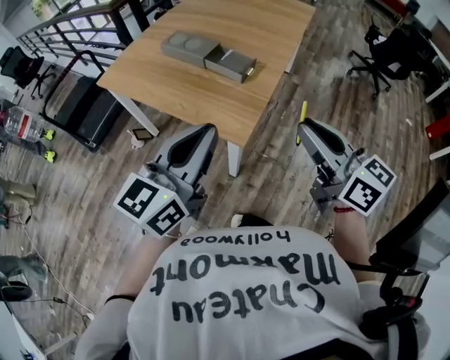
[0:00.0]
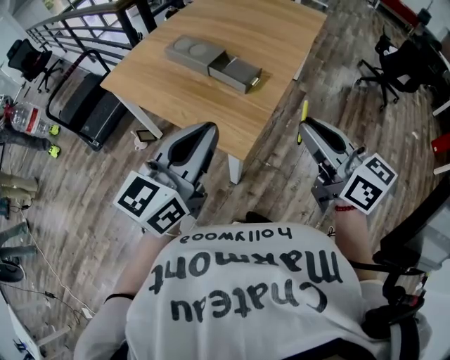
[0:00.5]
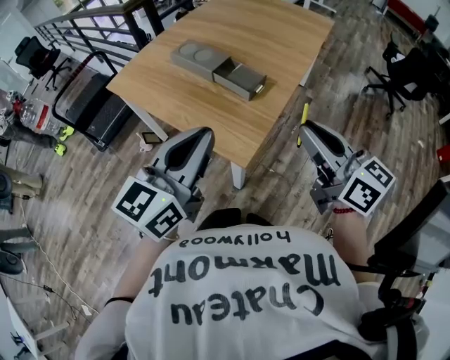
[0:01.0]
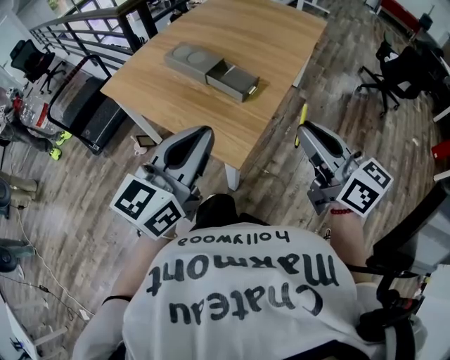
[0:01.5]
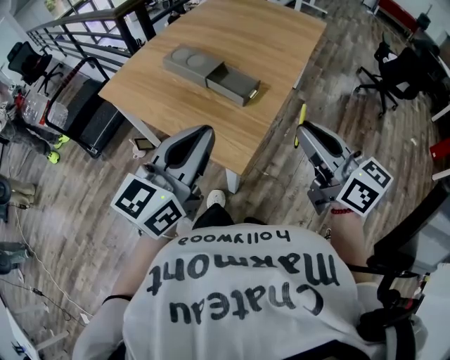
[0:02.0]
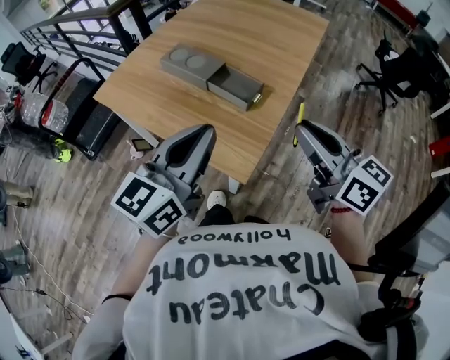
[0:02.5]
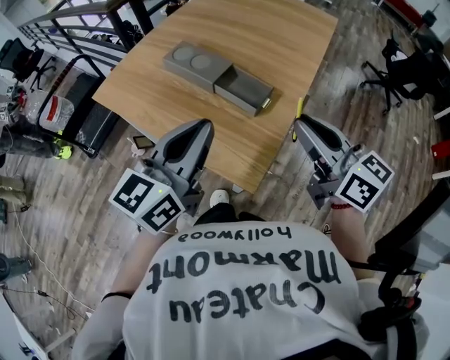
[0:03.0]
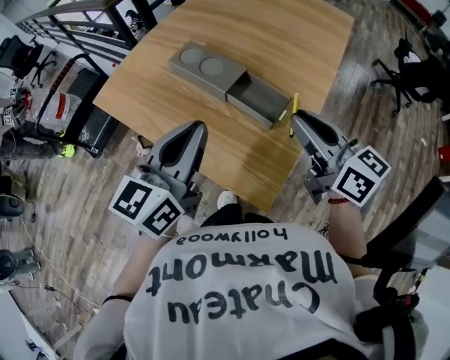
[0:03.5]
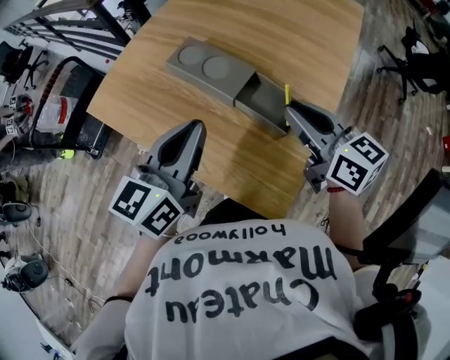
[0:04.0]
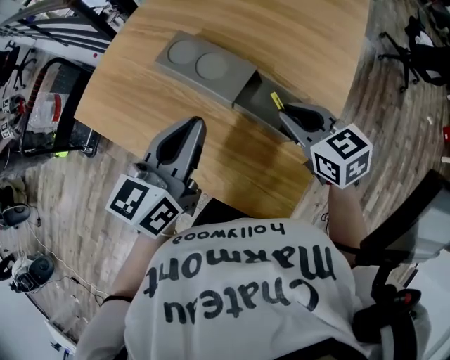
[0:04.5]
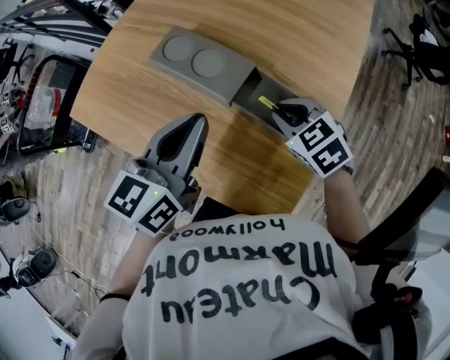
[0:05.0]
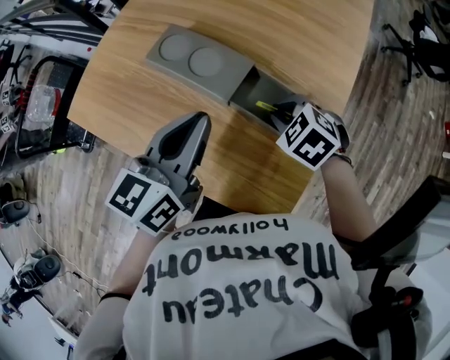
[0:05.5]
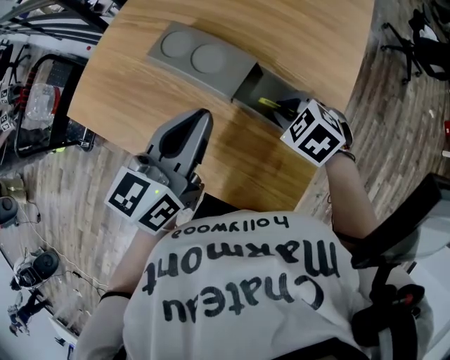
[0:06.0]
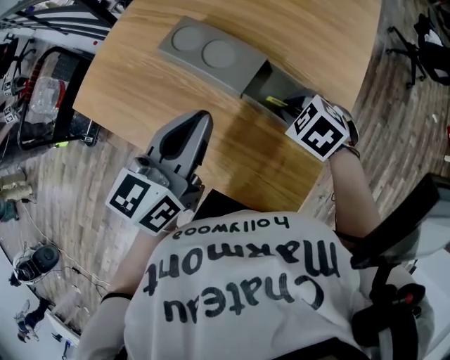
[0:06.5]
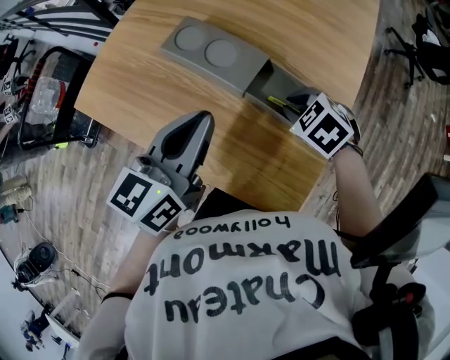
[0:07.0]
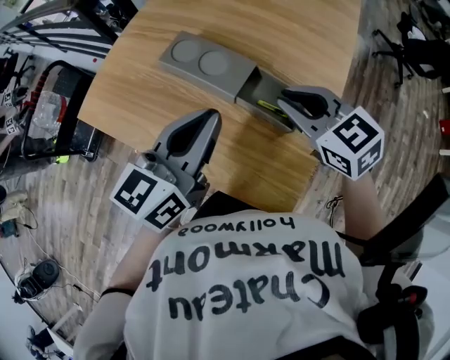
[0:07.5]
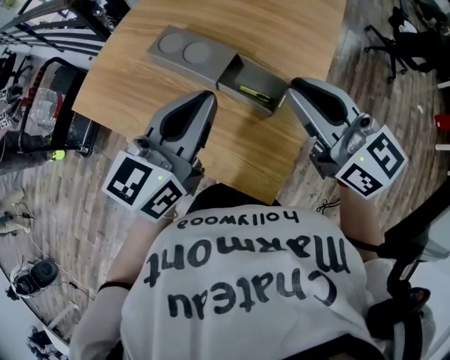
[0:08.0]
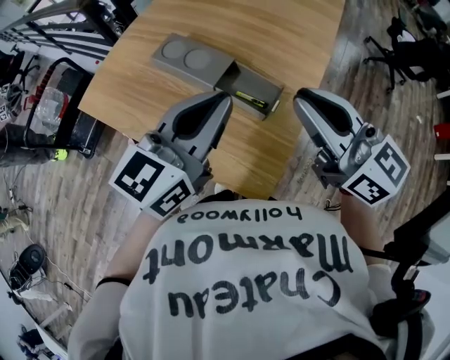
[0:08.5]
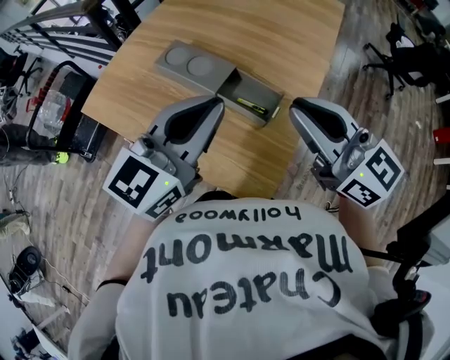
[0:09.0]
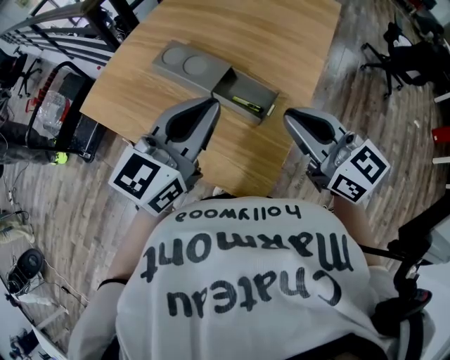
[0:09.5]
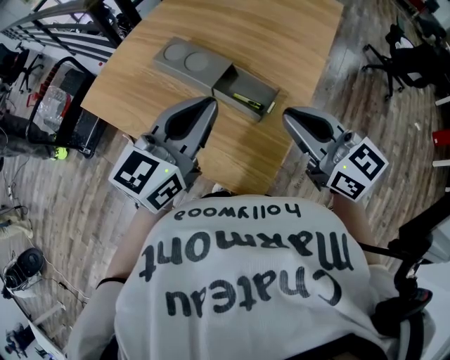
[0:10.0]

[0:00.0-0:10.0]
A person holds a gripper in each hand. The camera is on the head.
0:00.0 to 0:02.0: The grippers both shift forward by some 10 cm.
0:02.0 to 0:04.0: Both grippers travel together forward and to the left, roughly 30 cm.
0:04.0 to 0:06.0: The left gripper shifts by about 5 cm. Meanwhile the right gripper heads downward, covering about 20 cm, and points its fingers approximately 50 degrees further downward.
0:06.0 to 0:08.0: The right gripper moves upward, approximately 25 cm, and tips its fingers upward by approximately 60 degrees. Meanwhile the left gripper goes roughly 10 cm upward, backward and to the right.
0:08.0 to 0:10.0: The right gripper changes place by some 5 cm.

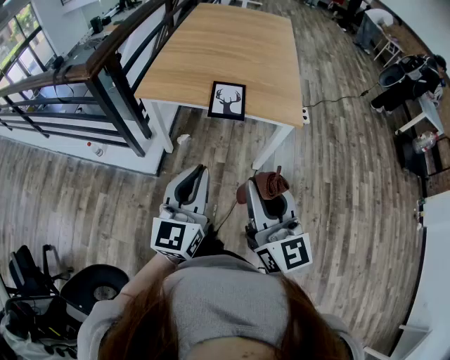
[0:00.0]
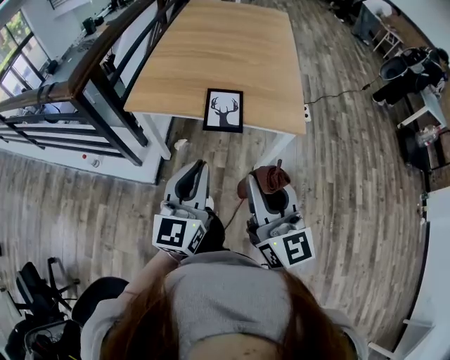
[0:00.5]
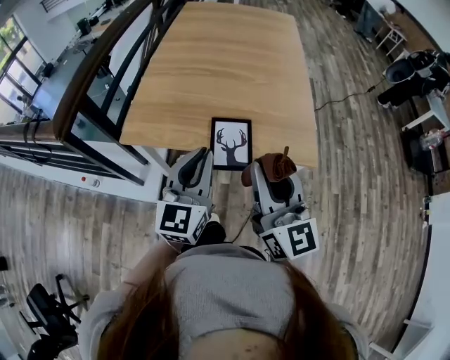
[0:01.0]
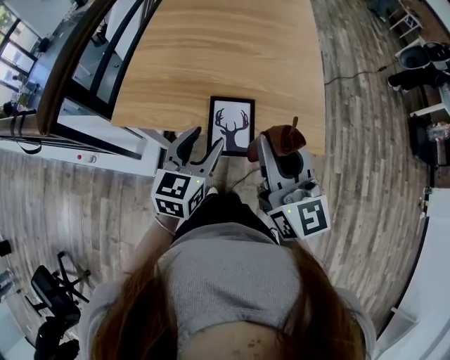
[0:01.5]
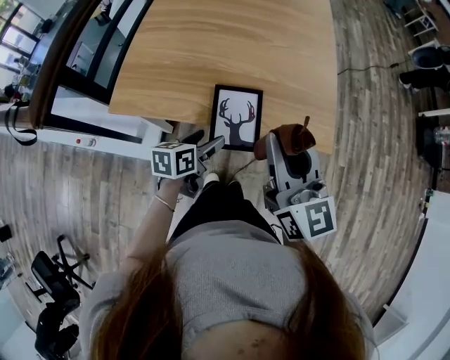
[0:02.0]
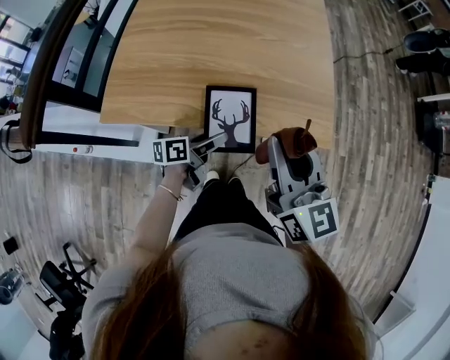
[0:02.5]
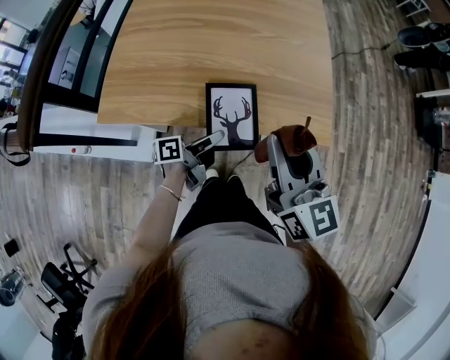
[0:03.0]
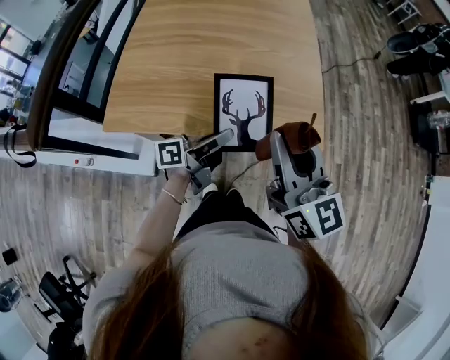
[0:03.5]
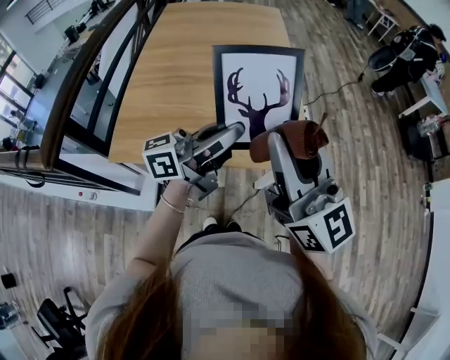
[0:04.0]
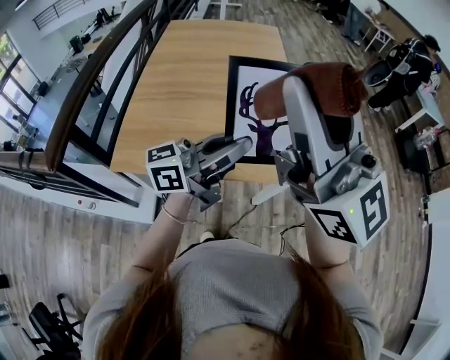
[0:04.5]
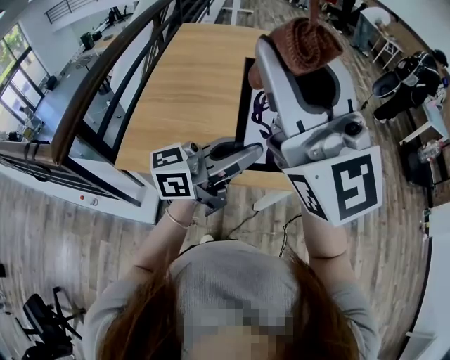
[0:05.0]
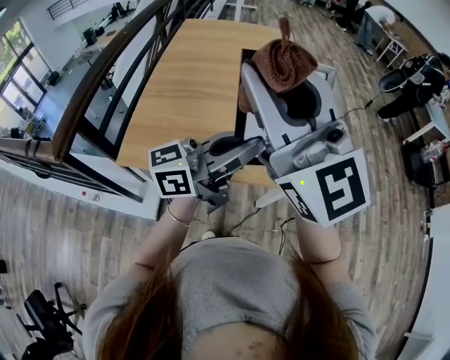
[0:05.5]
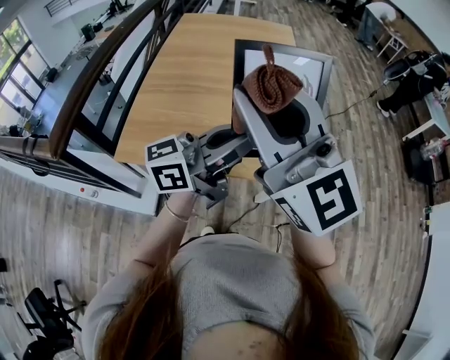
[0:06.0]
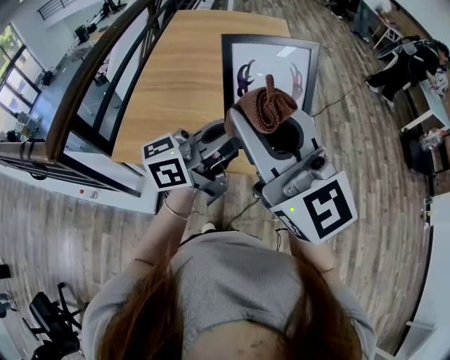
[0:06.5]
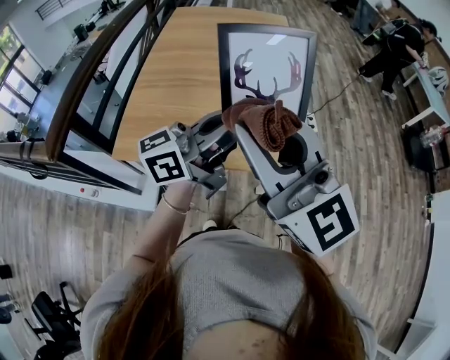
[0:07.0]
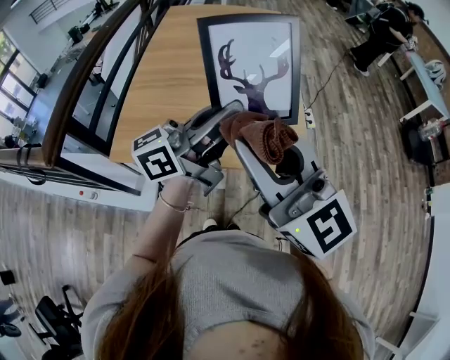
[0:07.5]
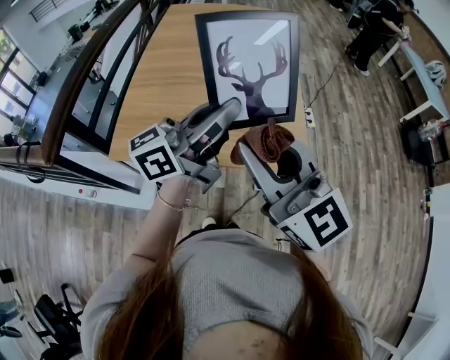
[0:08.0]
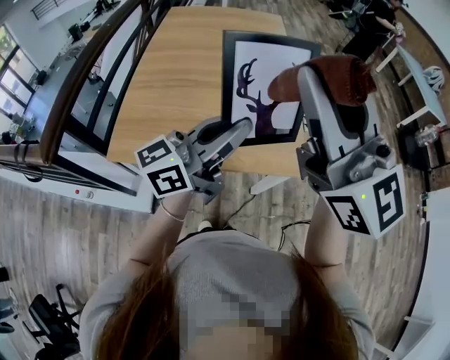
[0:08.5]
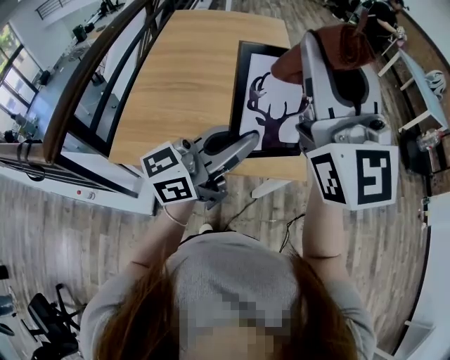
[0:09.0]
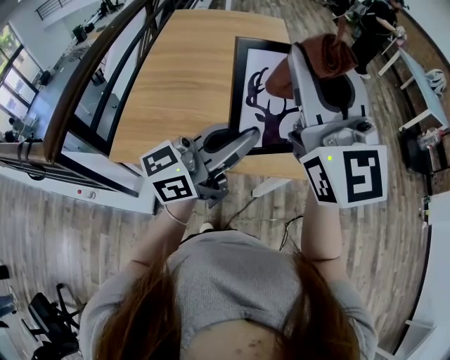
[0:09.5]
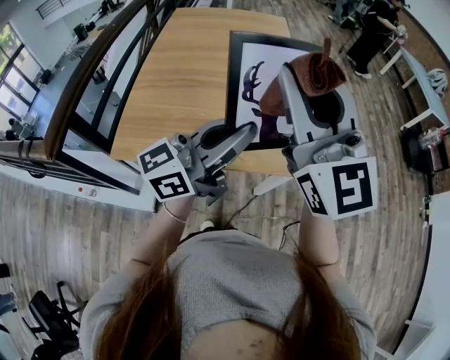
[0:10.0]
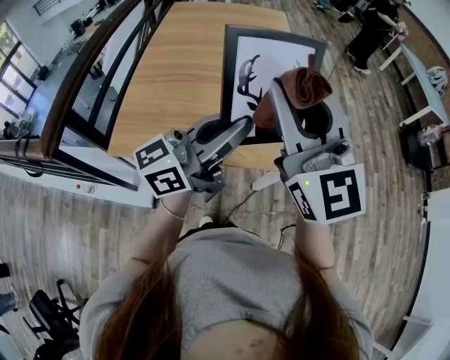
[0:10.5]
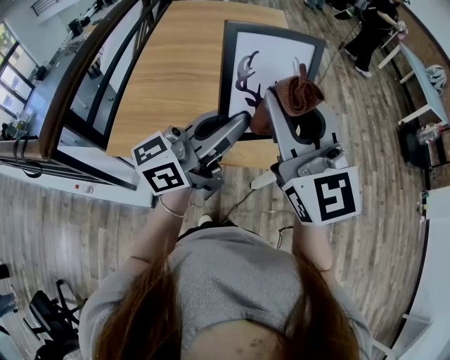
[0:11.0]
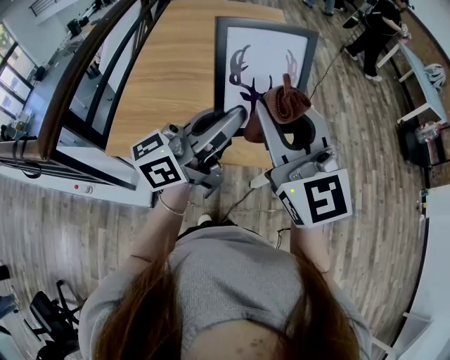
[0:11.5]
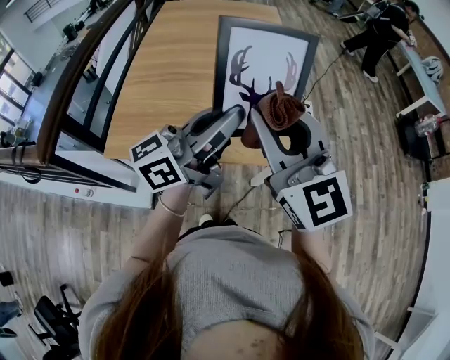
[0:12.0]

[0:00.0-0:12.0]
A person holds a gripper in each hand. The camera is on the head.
0:00.0 to 0:02.0: The right gripper travels forward by some 40 cm, while the left gripper shifts about 40 cm forward and downward, points its fingers approximately 30 degrees further downward, and opens its fingers.
0:02.0 to 0:04.0: The left gripper heads upward, covering roughly 30 cm, tips its fingers upward by approximately 60 degrees, and closes. The right gripper is displaced upward by about 15 cm, and swivels some 20 degrees.
0:04.0 to 0:06.0: The left gripper moves upward, about 5 cm. The right gripper travels to the left and upward by approximately 10 cm, and swivels some 20 degrees.
0:06.0 to 0:08.0: The right gripper travels downward by about 10 cm.
0:08.0 to 0:10.0: The right gripper moves upward and forward, roughly 15 cm, and turns by some 20 degrees.
0:10.0 to 0:12.0: The right gripper is displaced downward by approximately 10 cm.

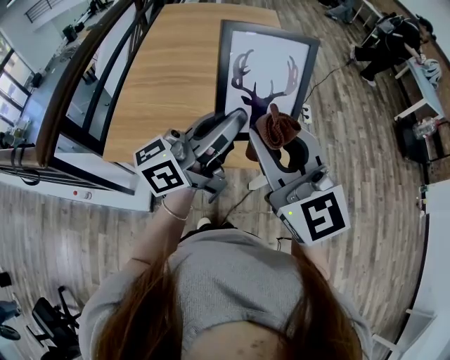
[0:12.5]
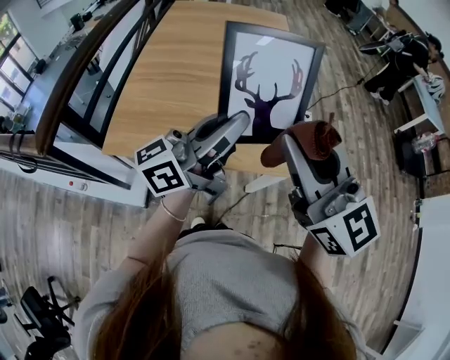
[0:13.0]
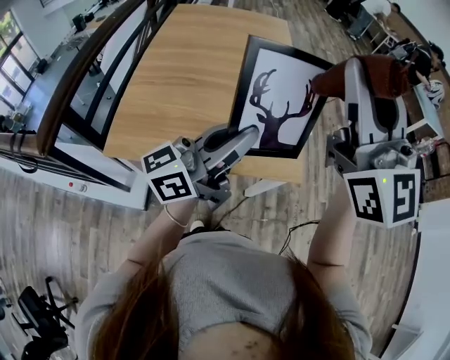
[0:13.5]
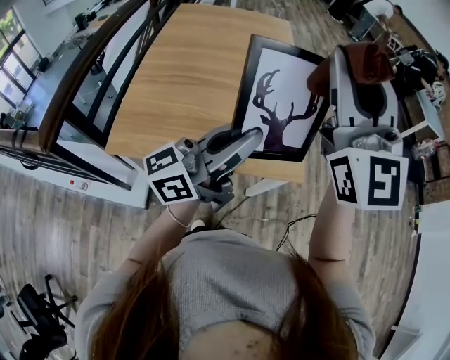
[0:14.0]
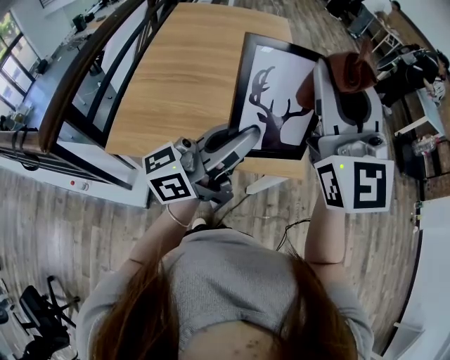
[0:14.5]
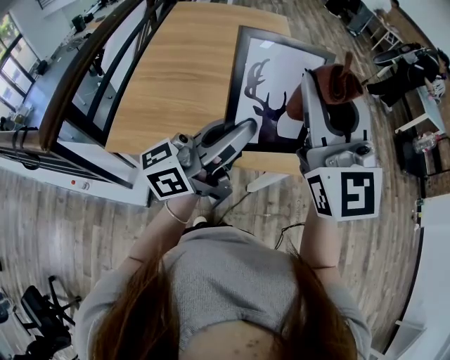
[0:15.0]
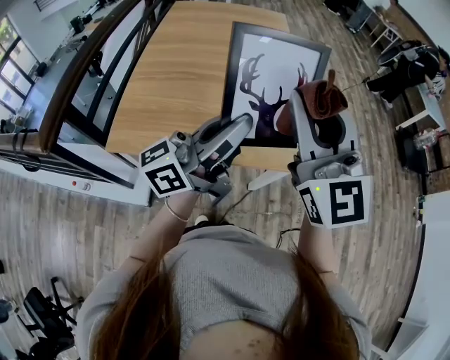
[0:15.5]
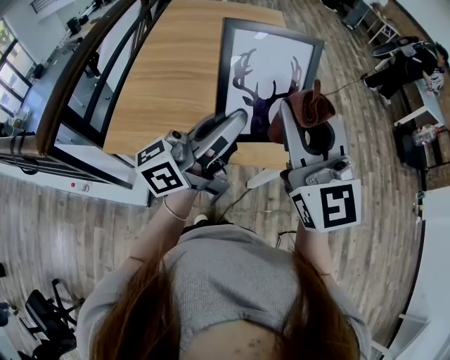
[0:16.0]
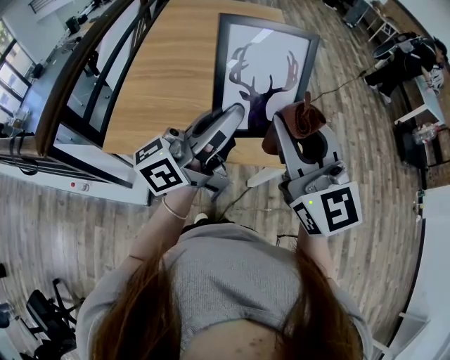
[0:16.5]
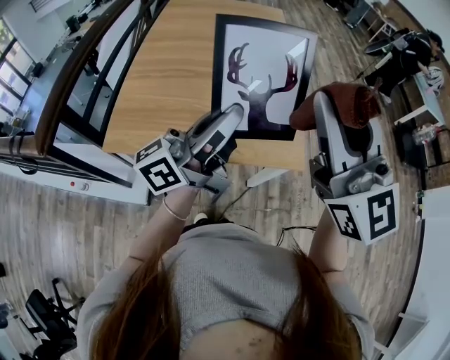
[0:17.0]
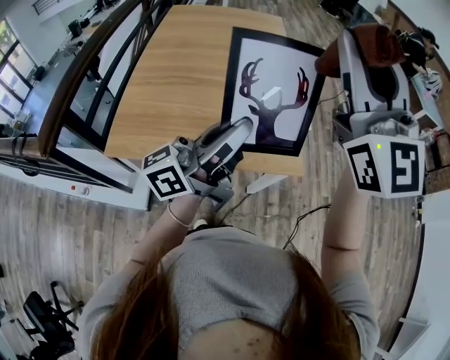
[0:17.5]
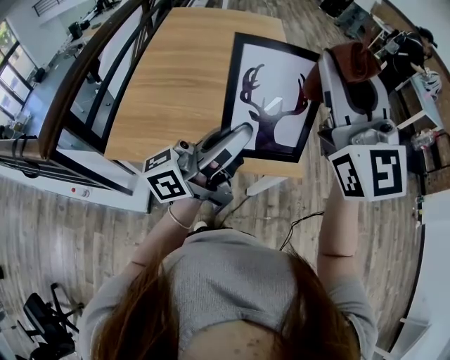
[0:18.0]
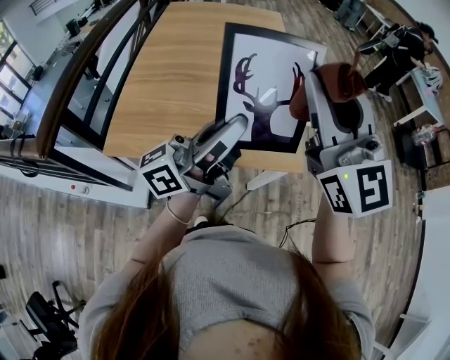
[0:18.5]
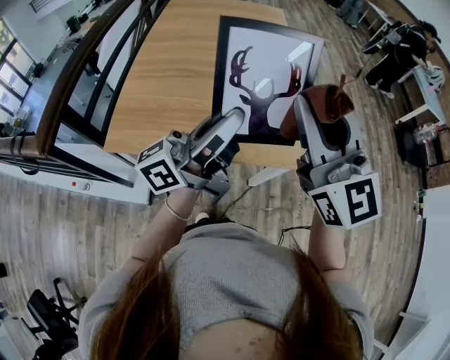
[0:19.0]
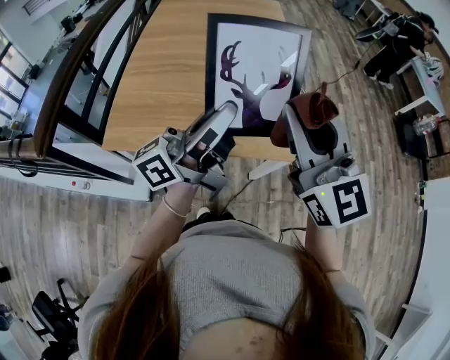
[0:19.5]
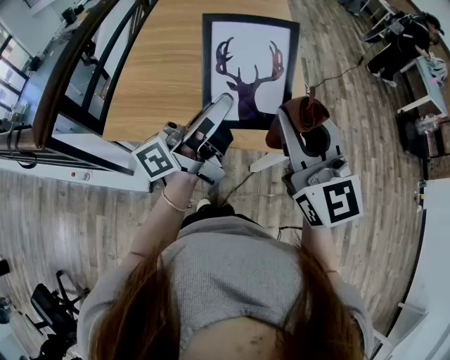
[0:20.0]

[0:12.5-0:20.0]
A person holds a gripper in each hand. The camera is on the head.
0:12.5 to 0:14.5: The right gripper moves upward and forward, about 15 cm, and swivels about 20 degrees.
0:14.5 to 0:16.5: The right gripper shifts some 15 cm downward and backward, and turns by approximately 20 degrees.
0:16.5 to 0:18.0: The right gripper goes some 15 cm upward and forward.
0:18.0 to 0:20.0: The left gripper ends up roughly 5 cm from where it was, while the right gripper goes roughly 15 cm downward, and rotates about 20 degrees.
